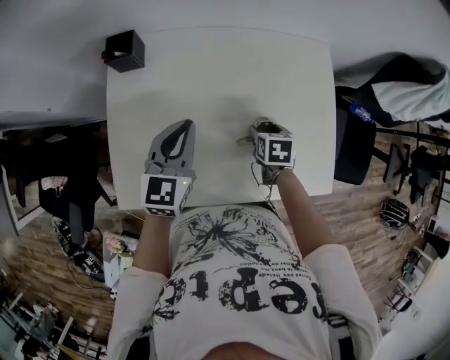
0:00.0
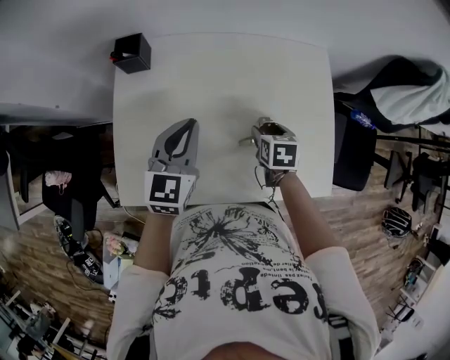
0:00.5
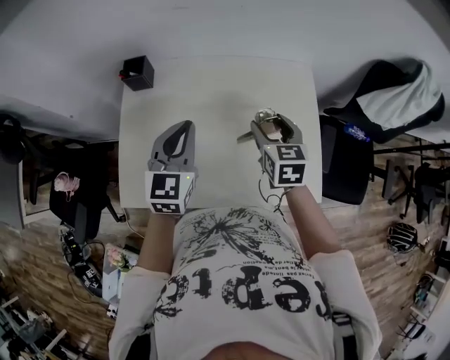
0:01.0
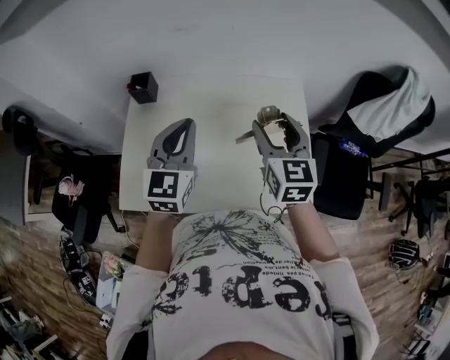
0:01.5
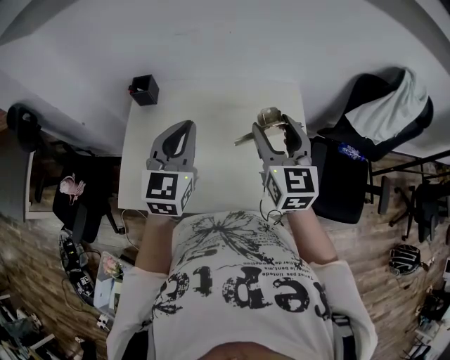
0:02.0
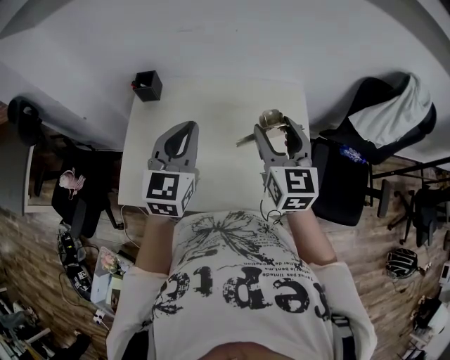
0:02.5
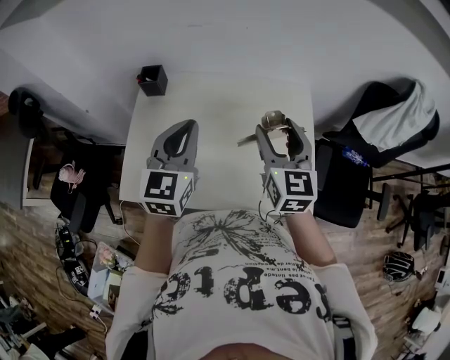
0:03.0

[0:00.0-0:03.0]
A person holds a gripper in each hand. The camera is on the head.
0:00.0 to 0:01.5: The right gripper moves upward, about 35 cm, and tilts its fingers approximately 50 degrees upward. The left gripper moves upward and to the right, about 20 cm.
0:01.5 to 0:03.0: There are only small adjustments of the grippers.

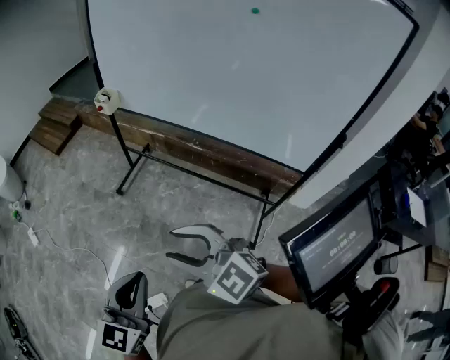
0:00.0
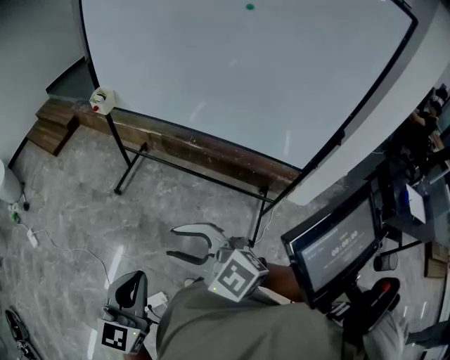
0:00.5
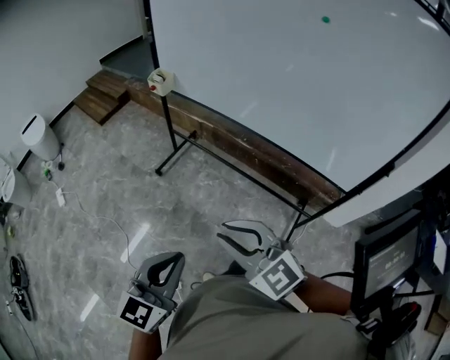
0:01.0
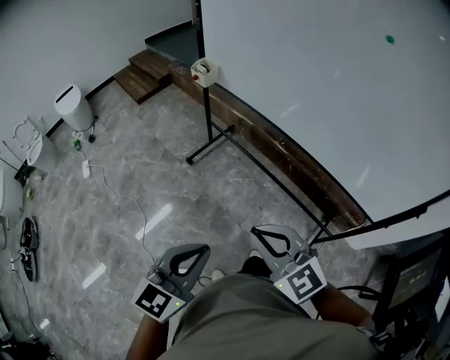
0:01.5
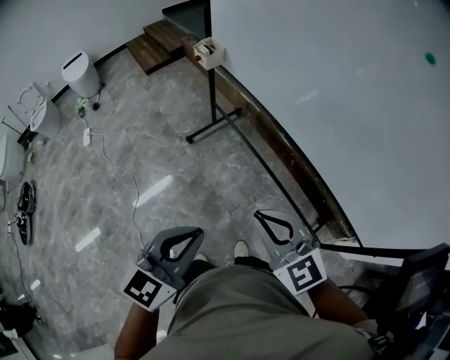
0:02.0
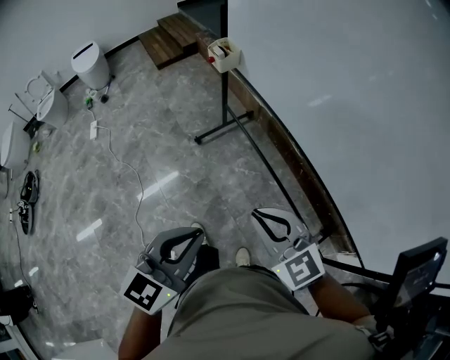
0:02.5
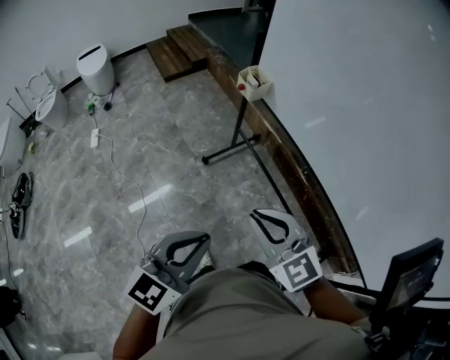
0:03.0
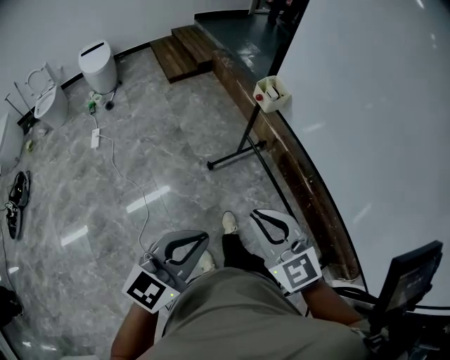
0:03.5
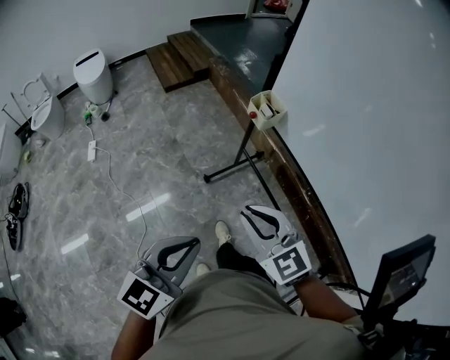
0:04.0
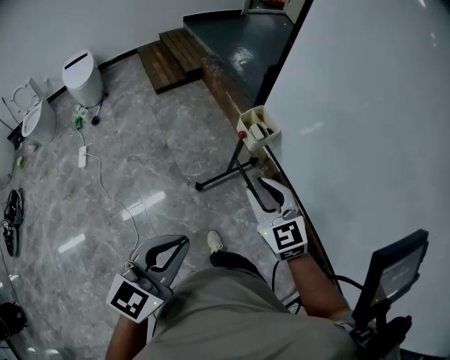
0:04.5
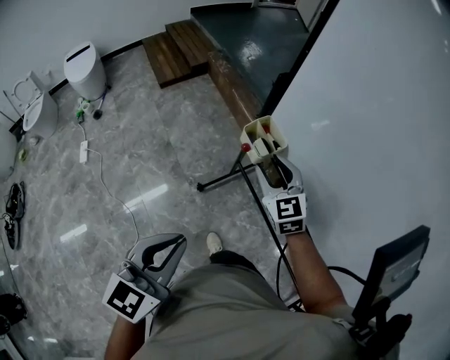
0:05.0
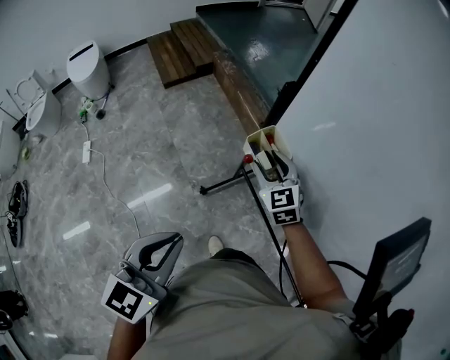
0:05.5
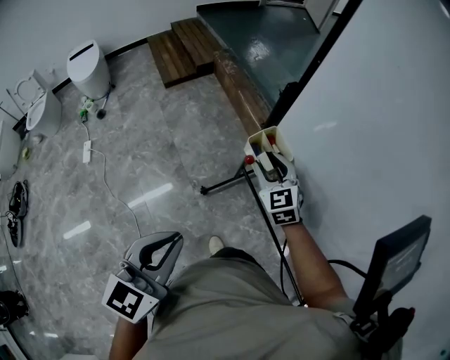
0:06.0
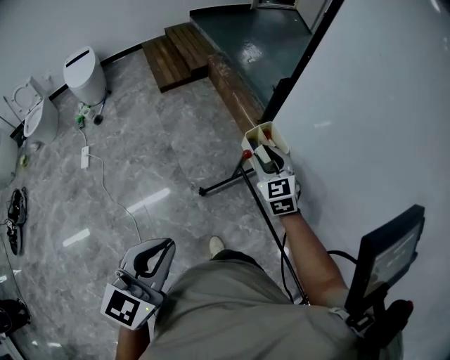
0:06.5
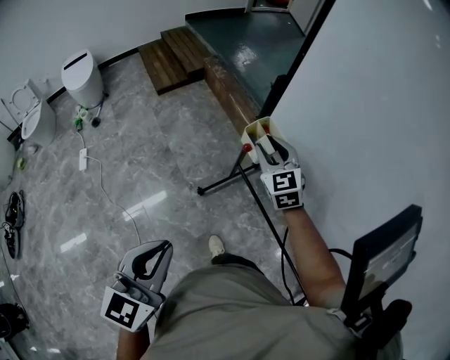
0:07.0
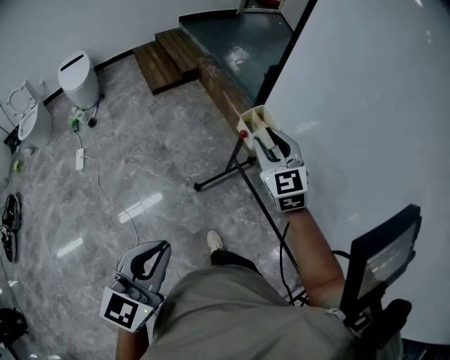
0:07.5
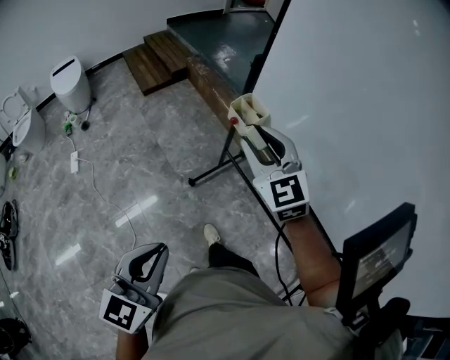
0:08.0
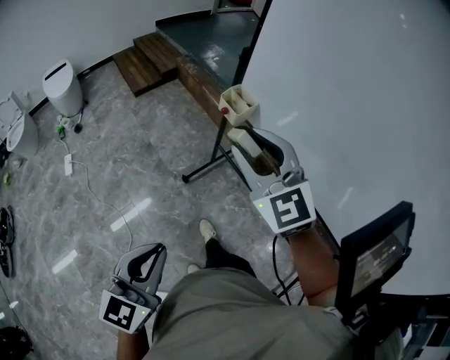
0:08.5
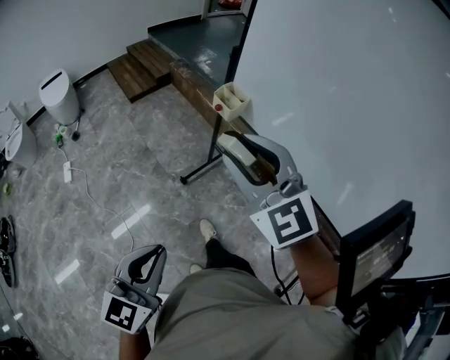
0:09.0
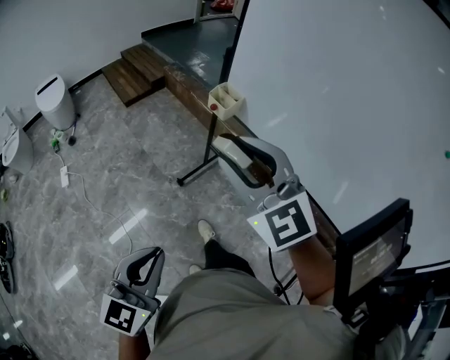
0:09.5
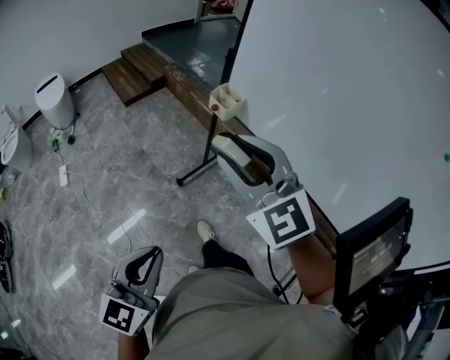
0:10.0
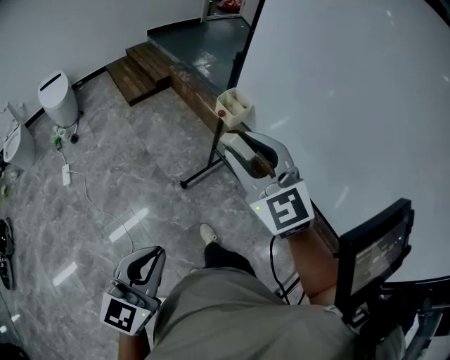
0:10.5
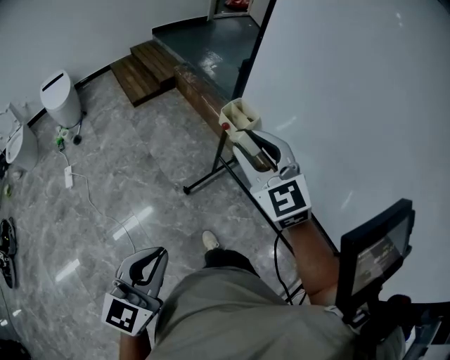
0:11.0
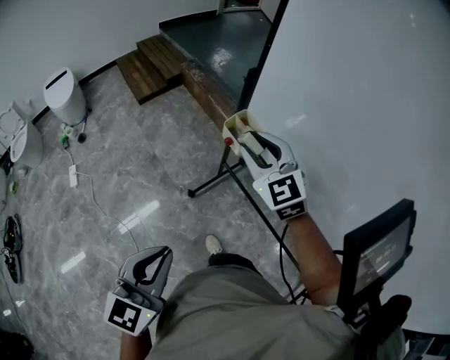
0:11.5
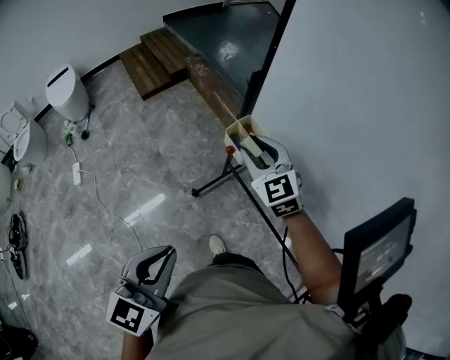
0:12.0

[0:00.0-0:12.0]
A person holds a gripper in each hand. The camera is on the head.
0:00.0 to 0:02.0: The two grippers go roughly 20 cm forward and to the right. The right gripper closes its fingers.
0:02.0 to 0:04.0: Both grippers travel together forward and to the left, roughly 35 cm.
0:04.0 to 0:06.0: The right gripper shifts some 40 cm forward, and opens up; the left gripper goes some 25 cm forward.
0:06.0 to 0:08.0: The left gripper shifts some 20 cm backward. Meanwhile the right gripper is displaced backward and upward by about 30 cm.
0:08.0 to 0:10.0: The left gripper goes about 10 cm backward, while the right gripper heads backward and upward, covering approximately 15 cm.
0:10.0 to 0:12.0: The left gripper moves forward, approximately 25 cm. The right gripper travels forward and downward by approximately 40 cm.

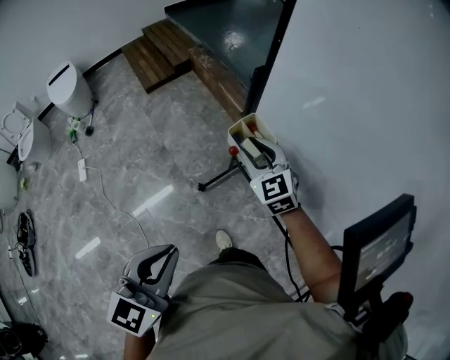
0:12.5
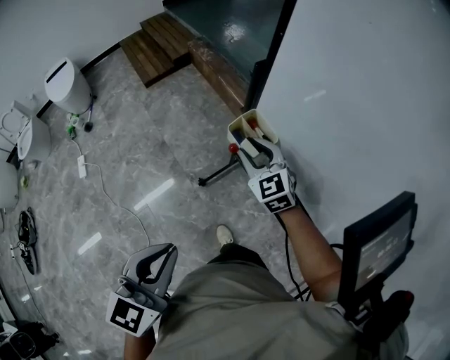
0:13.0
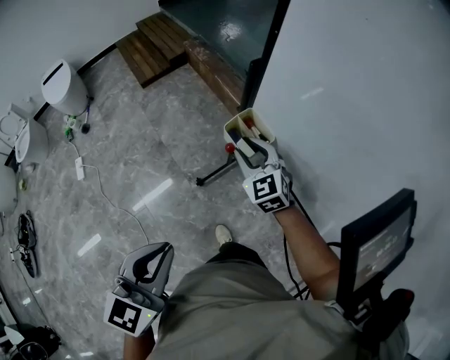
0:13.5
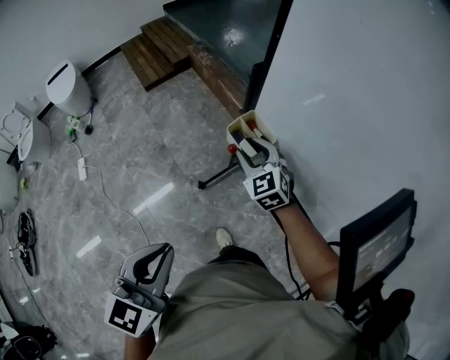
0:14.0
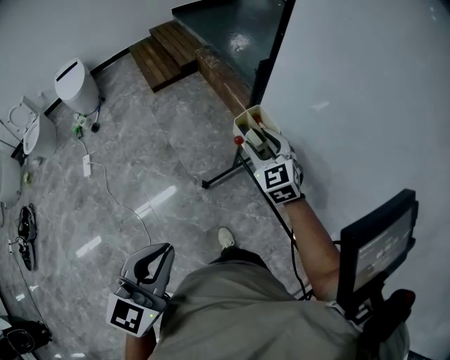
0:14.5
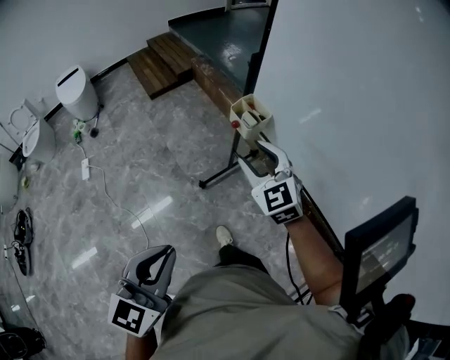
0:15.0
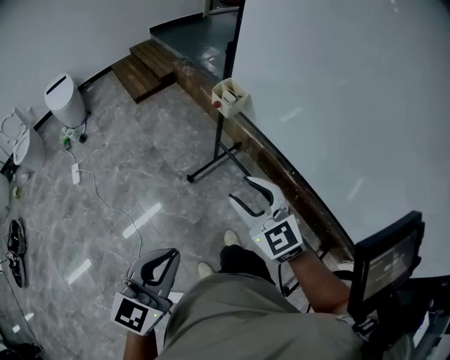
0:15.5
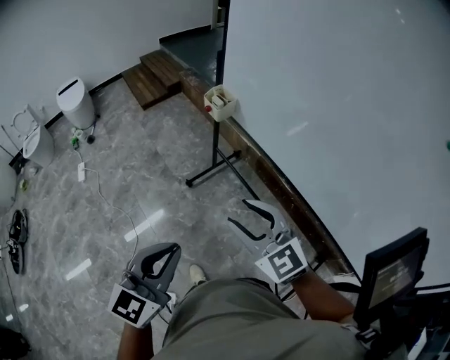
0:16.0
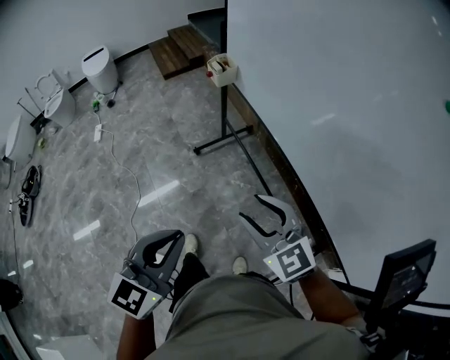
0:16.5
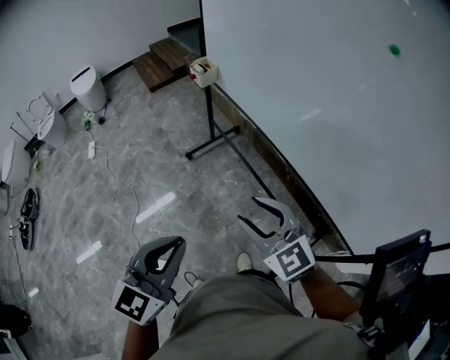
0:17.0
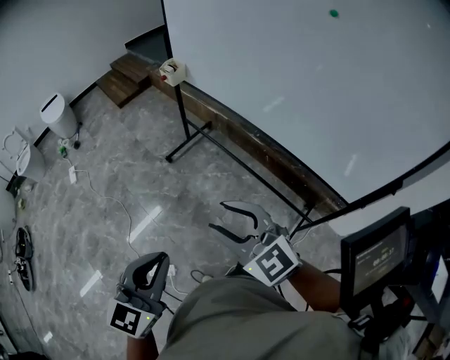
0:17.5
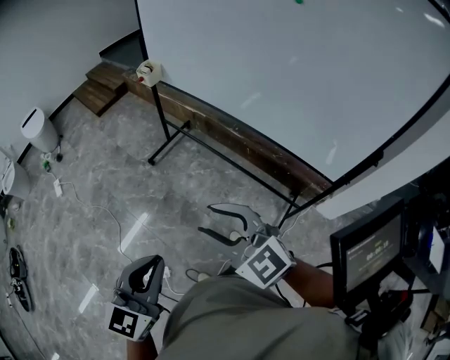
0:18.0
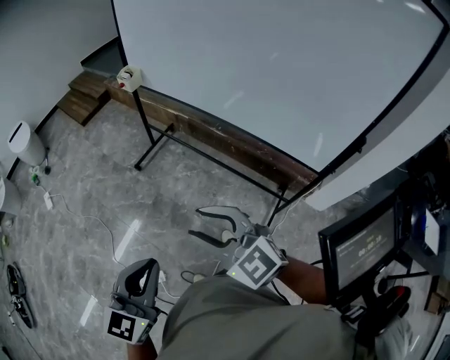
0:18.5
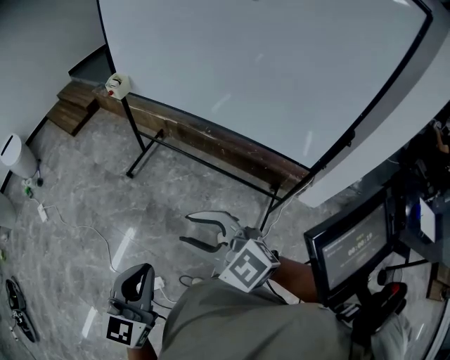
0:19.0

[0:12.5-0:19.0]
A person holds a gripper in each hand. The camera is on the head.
0:14.5 to 0:17.0: The two grippers travel together, backward, about 60 cm.
0:17.0 to 0:19.0: The grippers both shift backward and to the left by approximately 15 cm.

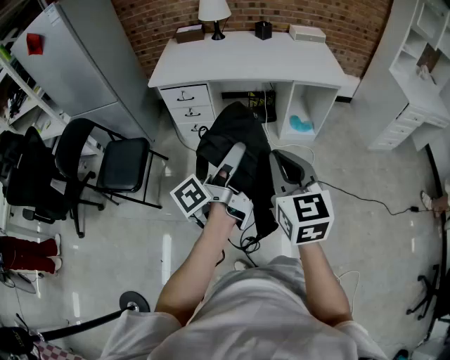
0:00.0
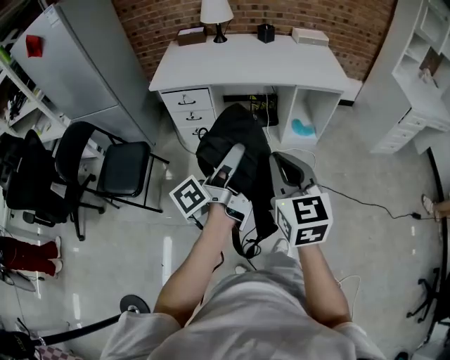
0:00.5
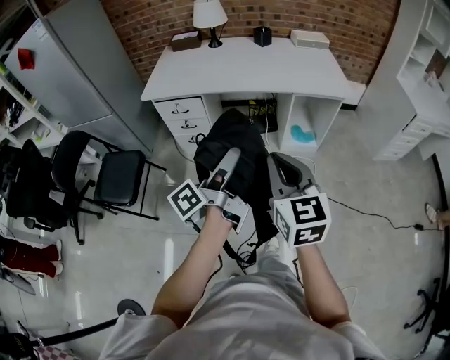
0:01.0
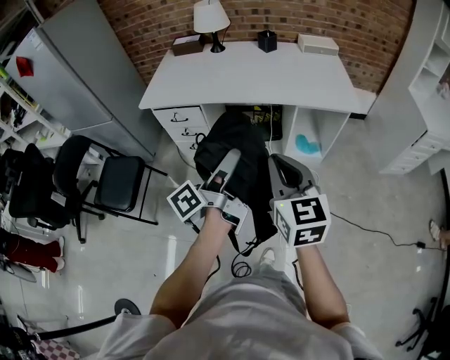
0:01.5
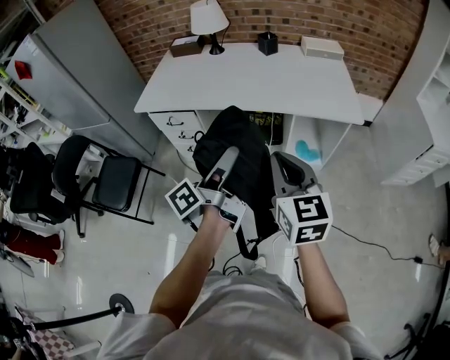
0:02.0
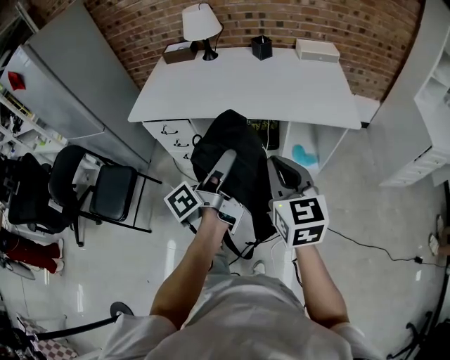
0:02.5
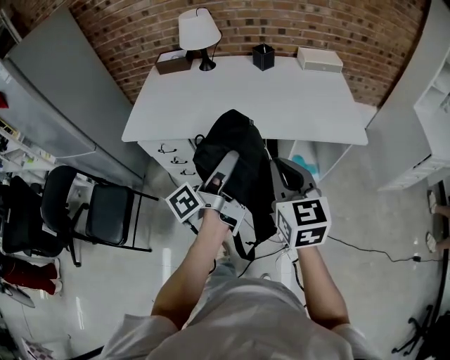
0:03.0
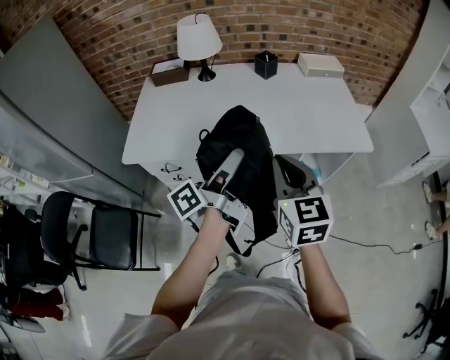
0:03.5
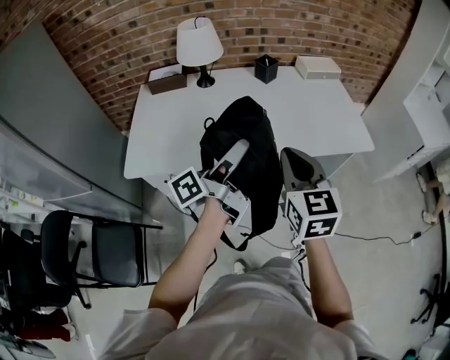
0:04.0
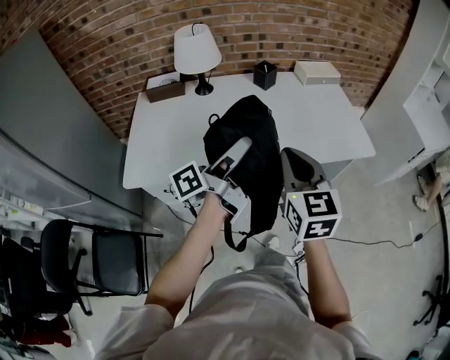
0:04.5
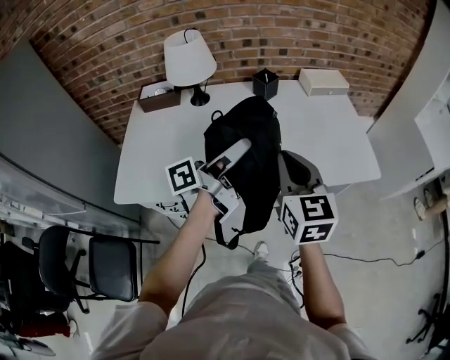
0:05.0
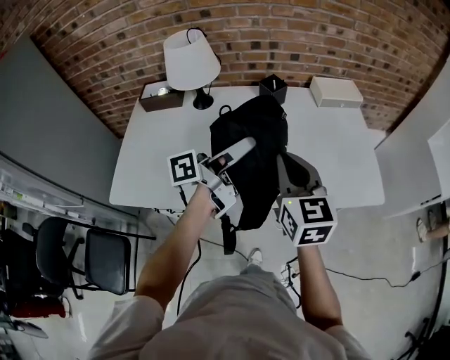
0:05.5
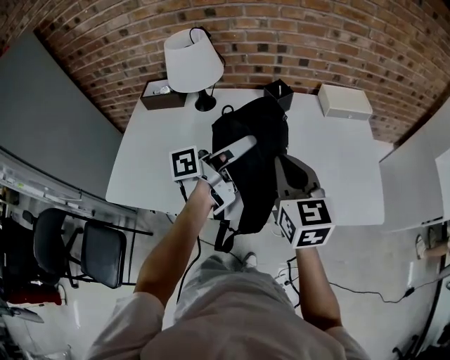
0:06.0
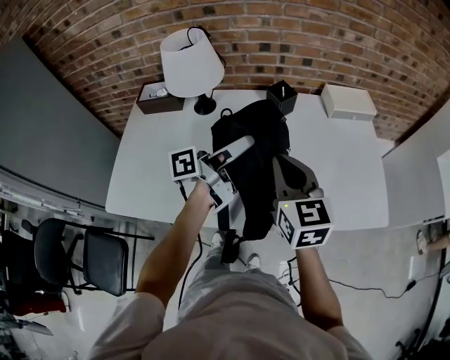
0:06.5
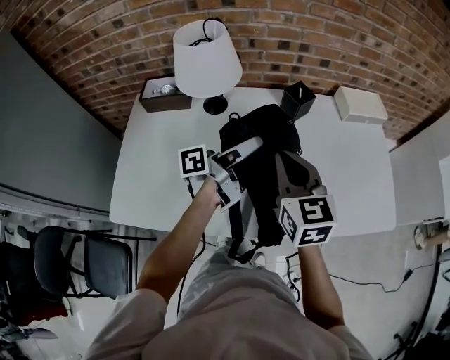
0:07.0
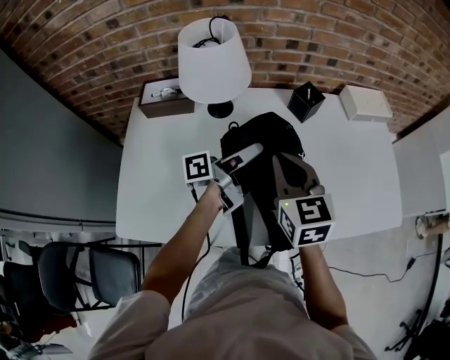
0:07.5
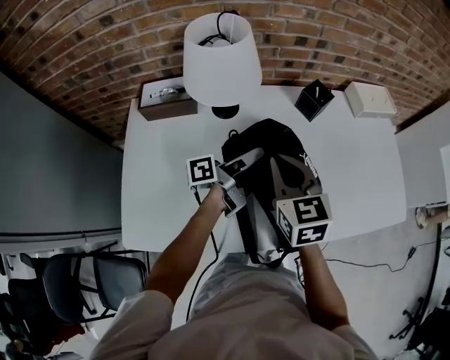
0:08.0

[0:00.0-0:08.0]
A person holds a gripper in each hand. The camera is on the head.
0:00.0 to 0:02.0: The right gripper moves about 30 cm.
0:02.0 to 0:04.0: The right gripper moves approximately 30 cm.
0:04.0 to 0:06.0: The right gripper shifts by roughly 25 cm.
0:06.0 to 0:08.0: The right gripper changes place by about 25 cm.
